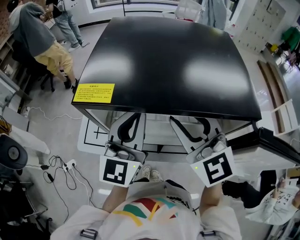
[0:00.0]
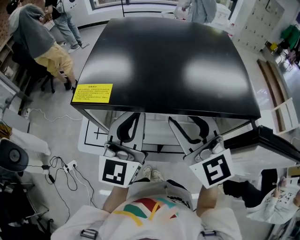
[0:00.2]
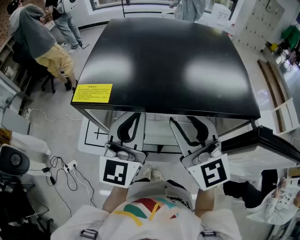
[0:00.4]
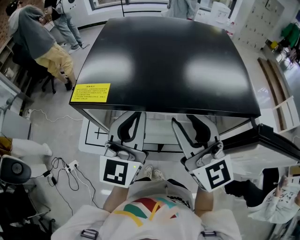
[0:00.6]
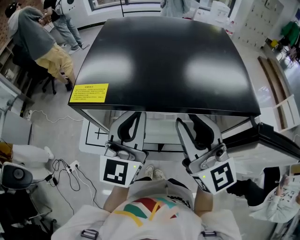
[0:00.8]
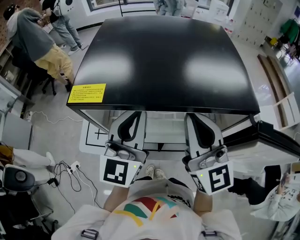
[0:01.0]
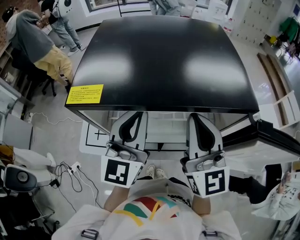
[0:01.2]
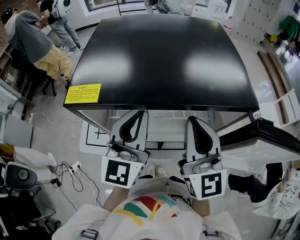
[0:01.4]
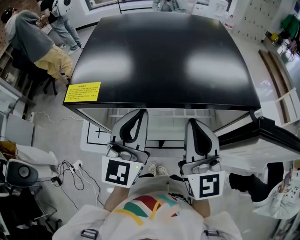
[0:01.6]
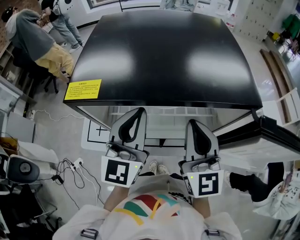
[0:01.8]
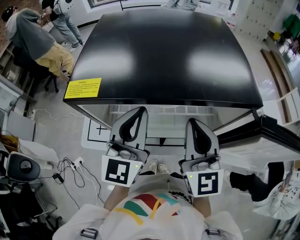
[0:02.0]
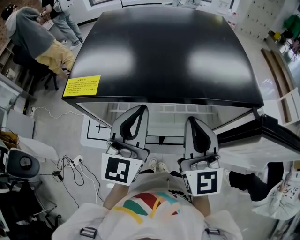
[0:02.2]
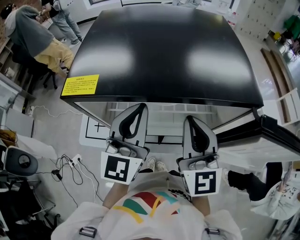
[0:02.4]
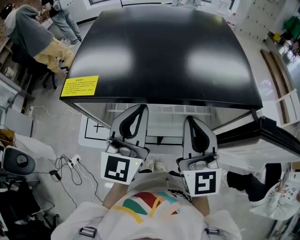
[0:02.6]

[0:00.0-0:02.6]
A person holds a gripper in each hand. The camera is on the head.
0:00.0 to 0:01.2: The right gripper is displaced to the right by roughly 5 cm, rotates some 30 degrees, and closes.
0:01.2 to 0:02.6: The grippers make only small movements.

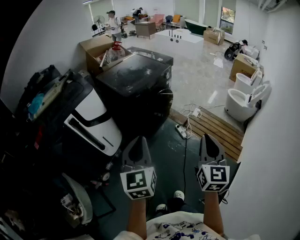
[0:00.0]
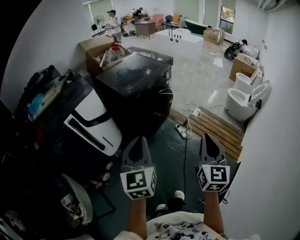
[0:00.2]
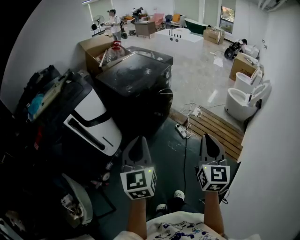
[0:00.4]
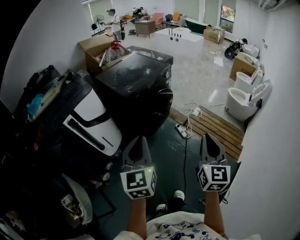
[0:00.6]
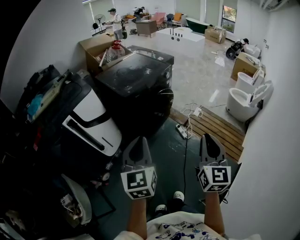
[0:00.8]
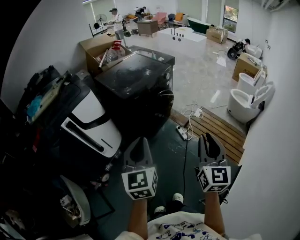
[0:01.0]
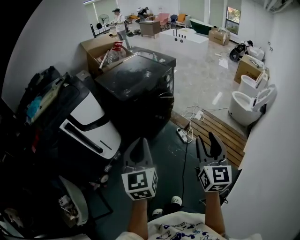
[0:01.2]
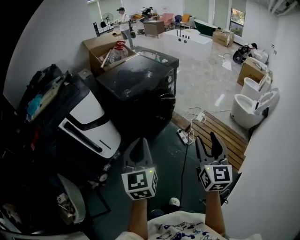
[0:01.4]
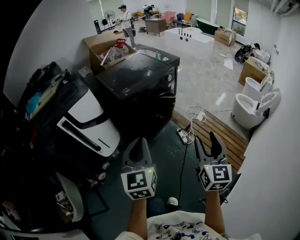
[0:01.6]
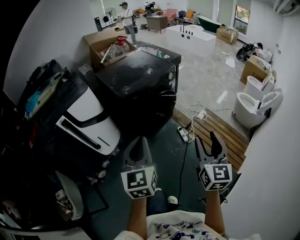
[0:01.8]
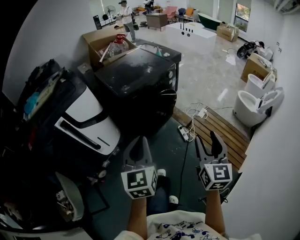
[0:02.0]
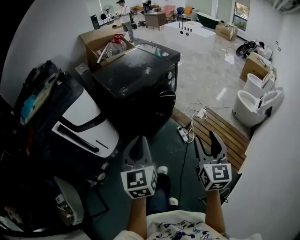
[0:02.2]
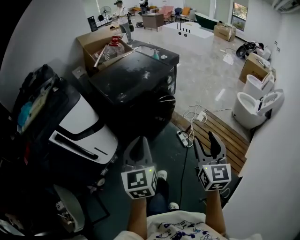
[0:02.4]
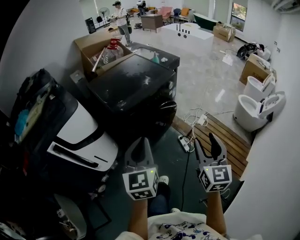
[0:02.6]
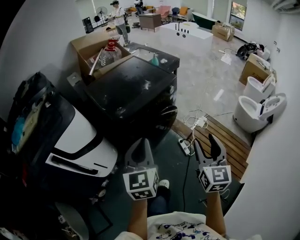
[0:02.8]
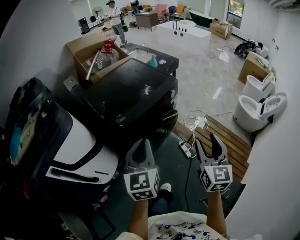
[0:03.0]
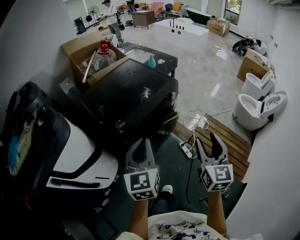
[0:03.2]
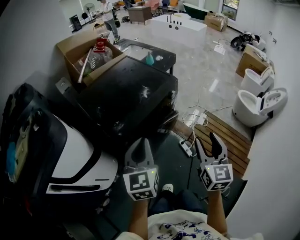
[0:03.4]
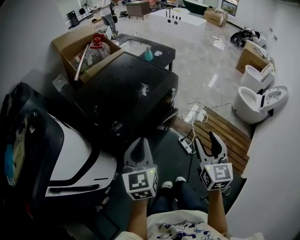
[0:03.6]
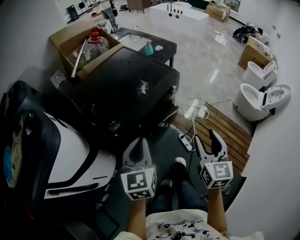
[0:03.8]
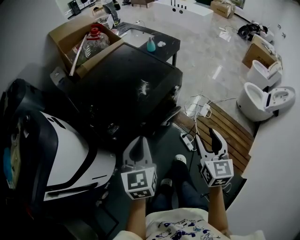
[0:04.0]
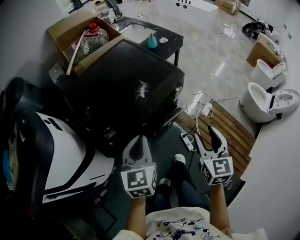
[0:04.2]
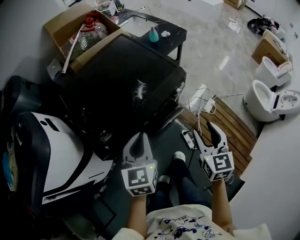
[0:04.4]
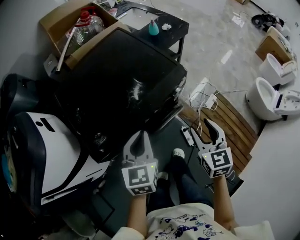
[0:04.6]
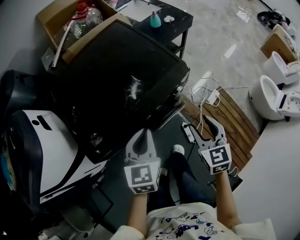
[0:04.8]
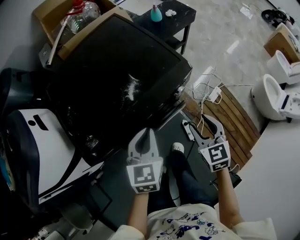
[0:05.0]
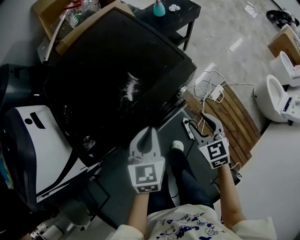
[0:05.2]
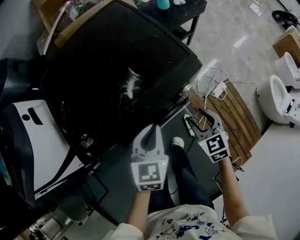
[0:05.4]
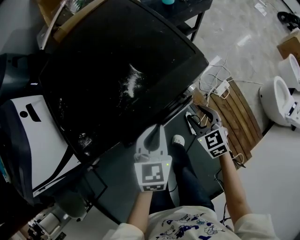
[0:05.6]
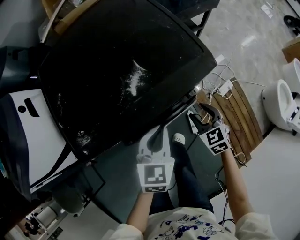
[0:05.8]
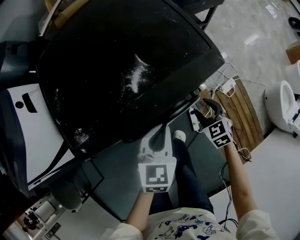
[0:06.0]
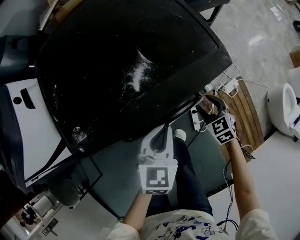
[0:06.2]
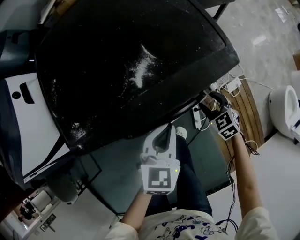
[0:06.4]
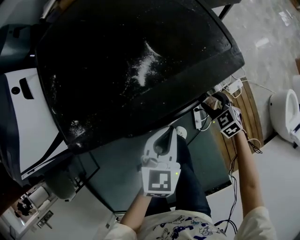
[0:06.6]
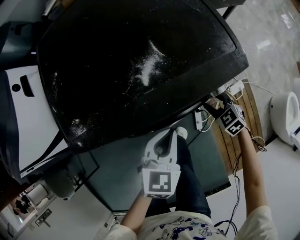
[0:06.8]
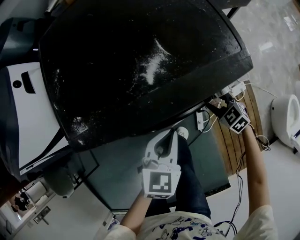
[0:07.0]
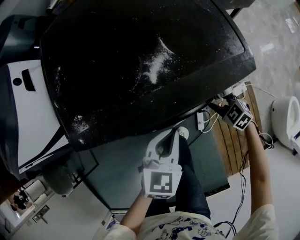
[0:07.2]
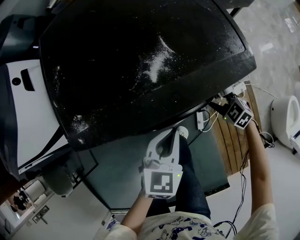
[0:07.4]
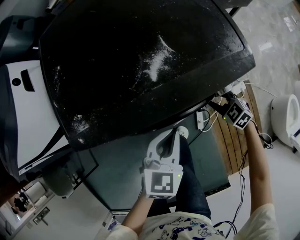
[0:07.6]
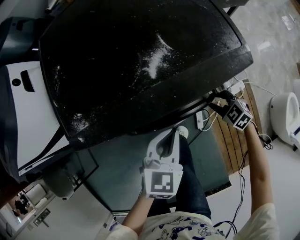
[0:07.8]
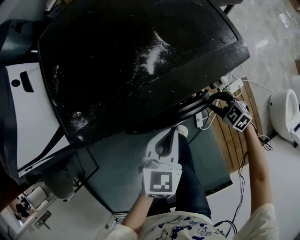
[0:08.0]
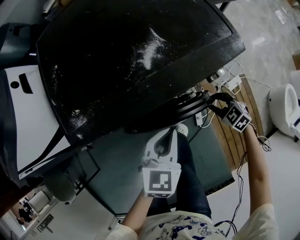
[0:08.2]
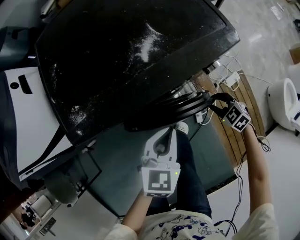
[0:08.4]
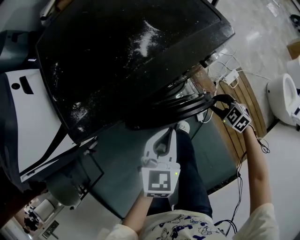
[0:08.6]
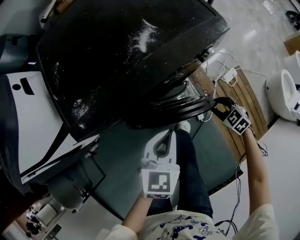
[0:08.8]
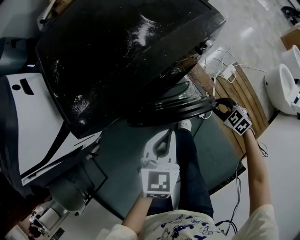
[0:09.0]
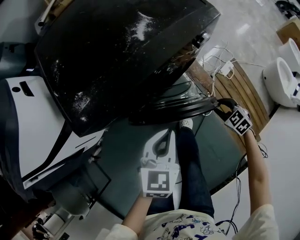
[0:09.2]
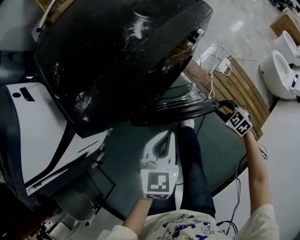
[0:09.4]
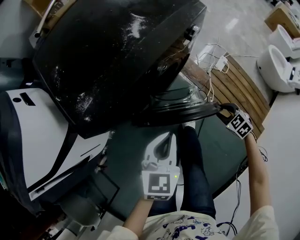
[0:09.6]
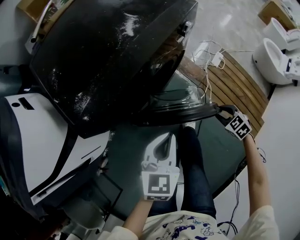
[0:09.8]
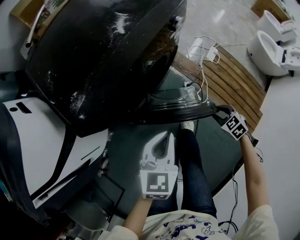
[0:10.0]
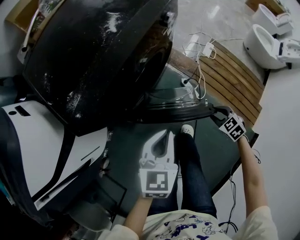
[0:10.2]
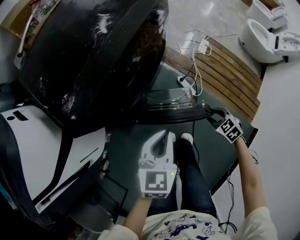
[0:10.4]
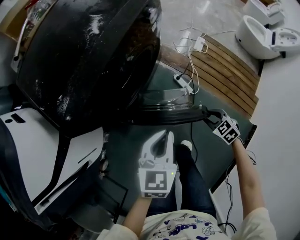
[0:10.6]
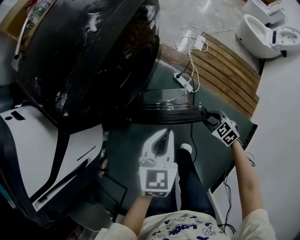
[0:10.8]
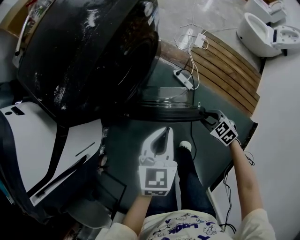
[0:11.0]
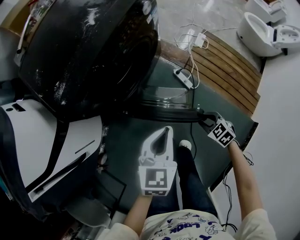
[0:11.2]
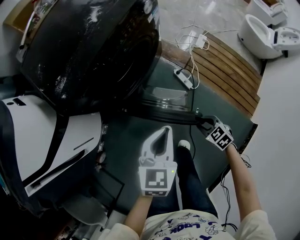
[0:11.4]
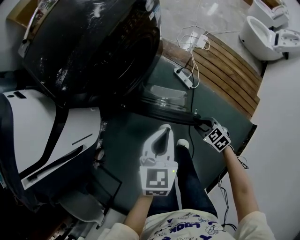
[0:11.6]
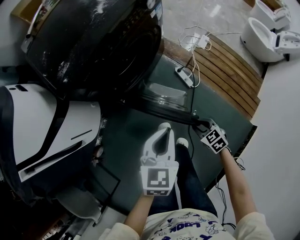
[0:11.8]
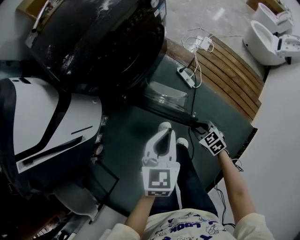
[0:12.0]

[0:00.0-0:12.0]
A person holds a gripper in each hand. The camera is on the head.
0:00.0 to 0:01.6: Both grippers move forward and to the right, approximately 10 cm. The right gripper opens up.
0:01.6 to 0:03.0: The grippers both shift forward by roughly 30 cm.
0:03.0 to 0:04.4: Both grippers travel together forward and downward, approximately 25 cm.
0:04.4 to 0:06.0: The right gripper moves downward and forward, roughly 30 cm, and swivels some 50 degrees. The left gripper goes about 20 cm downward and to the right.
0:06.0 to 0:07.6: The right gripper moves downward, about 5 cm, and rotates approximately 30 degrees.
0:07.6 to 0:09.0: The right gripper is displaced backward by some 15 cm, and turns by about 20 degrees. The left gripper heads backward and to the left, covering some 10 cm.
0:09.0 to 0:10.4: The left gripper travels backward by some 10 cm; the right gripper heads backward, covering some 20 cm, and changes its angle by roughly 30 degrees.
0:10.4 to 0:12.0: The left gripper is displaced backward by roughly 15 cm. The right gripper shifts roughly 15 cm backward and to the left.

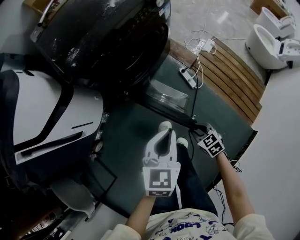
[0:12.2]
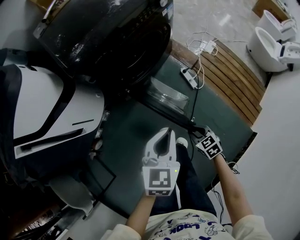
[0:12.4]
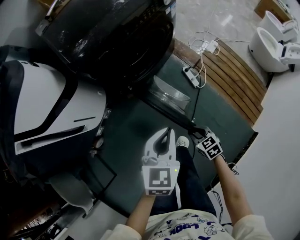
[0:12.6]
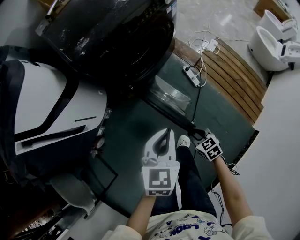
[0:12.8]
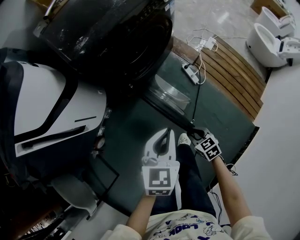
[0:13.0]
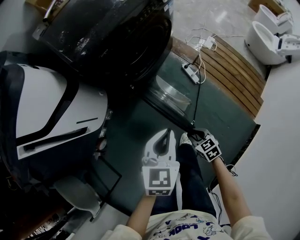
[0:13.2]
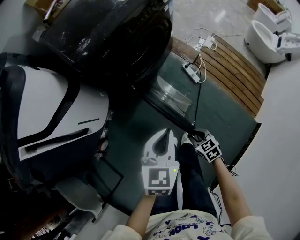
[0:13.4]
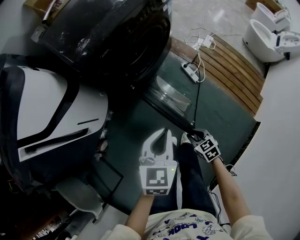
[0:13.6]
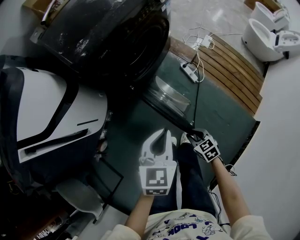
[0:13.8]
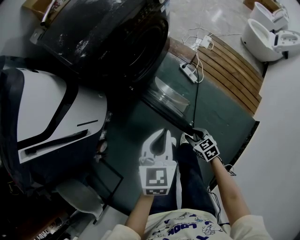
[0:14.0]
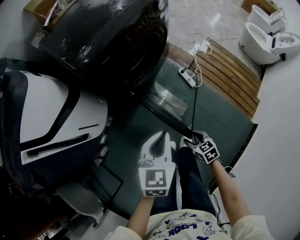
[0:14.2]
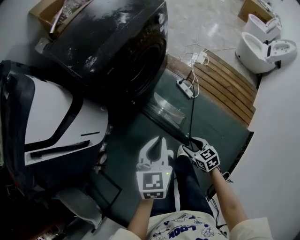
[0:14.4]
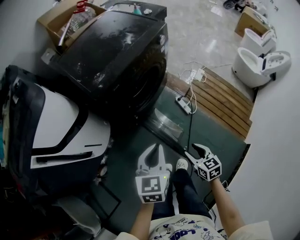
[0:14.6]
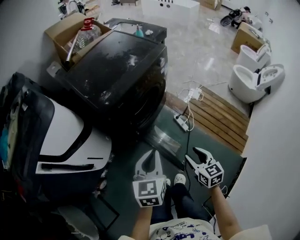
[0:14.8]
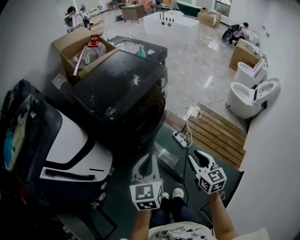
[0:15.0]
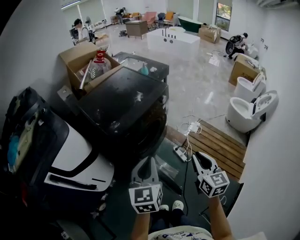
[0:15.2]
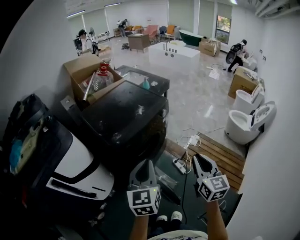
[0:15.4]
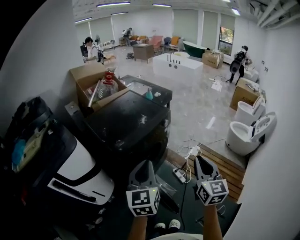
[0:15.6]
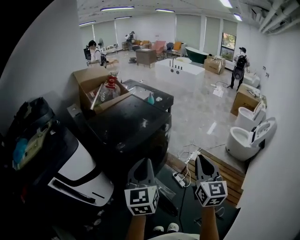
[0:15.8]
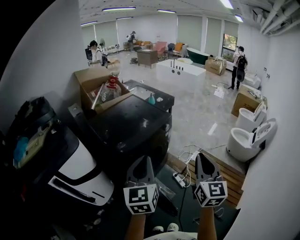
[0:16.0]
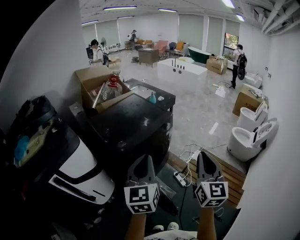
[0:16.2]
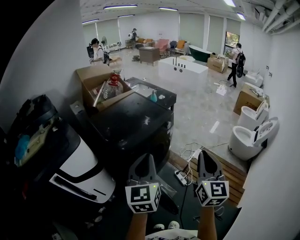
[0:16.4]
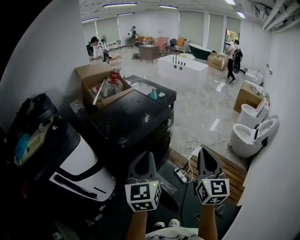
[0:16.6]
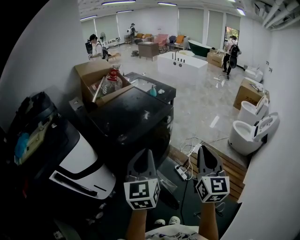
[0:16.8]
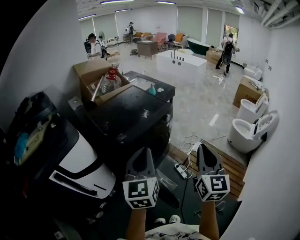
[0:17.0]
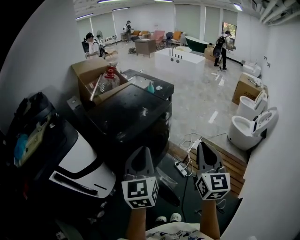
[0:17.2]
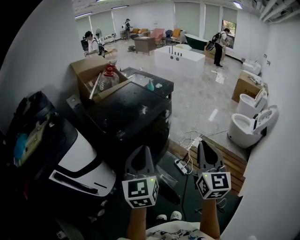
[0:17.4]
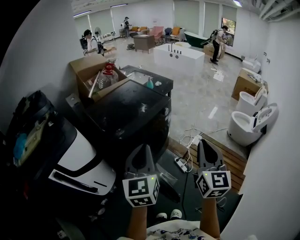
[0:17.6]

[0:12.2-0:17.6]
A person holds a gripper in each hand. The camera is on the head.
0:12.2 to 0:13.6: The right gripper travels to the left and backward by roughly 10 cm, while the left gripper goes some 10 cm to the left.
0:13.6 to 0:15.0: The left gripper is displaced upward by roughly 20 cm, and rotates approximately 20 degrees; the right gripper goes some 35 cm upward, and tips its fingers upward by some 30 degrees.
0:15.0 to 0:16.2: Both grippers travel together upward, about 20 cm. The right gripper rotates about 30 degrees, and closes.
0:16.2 to 0:17.6: Both grippers stay put.

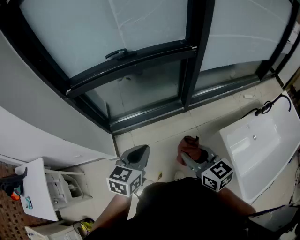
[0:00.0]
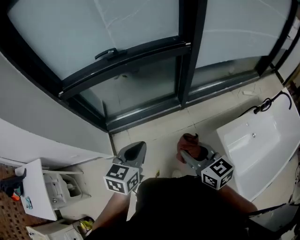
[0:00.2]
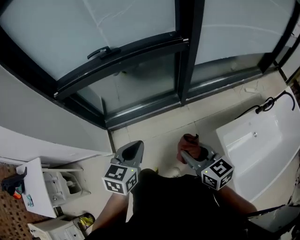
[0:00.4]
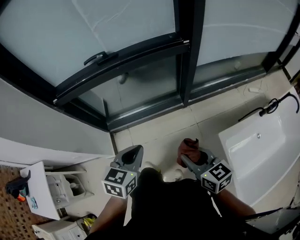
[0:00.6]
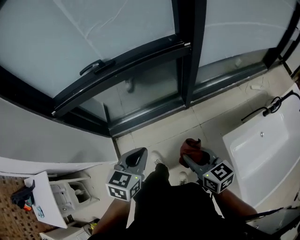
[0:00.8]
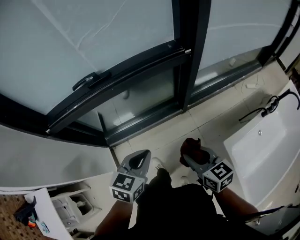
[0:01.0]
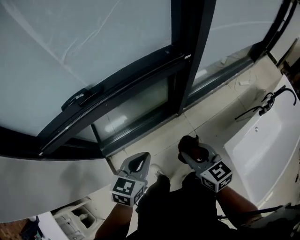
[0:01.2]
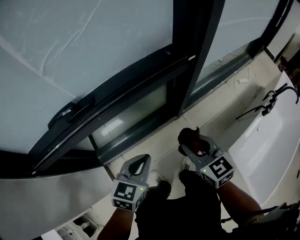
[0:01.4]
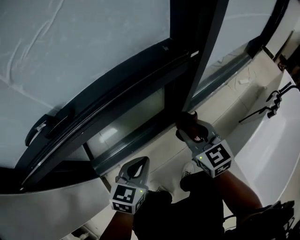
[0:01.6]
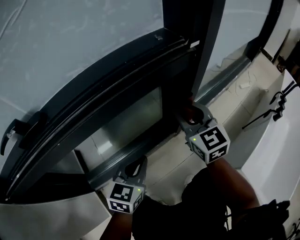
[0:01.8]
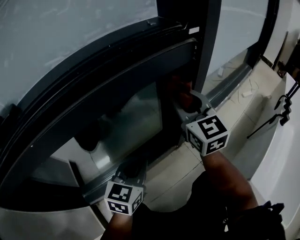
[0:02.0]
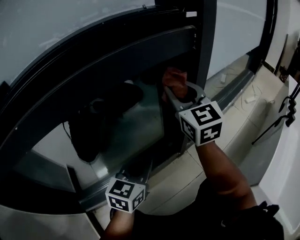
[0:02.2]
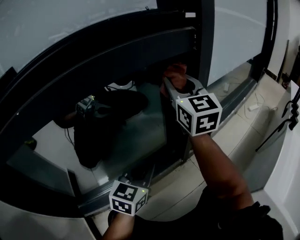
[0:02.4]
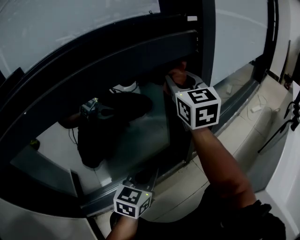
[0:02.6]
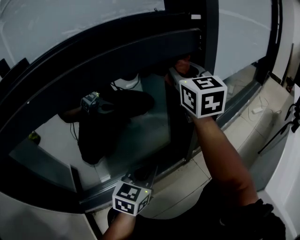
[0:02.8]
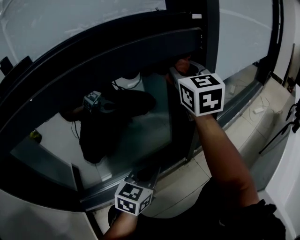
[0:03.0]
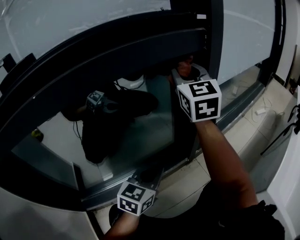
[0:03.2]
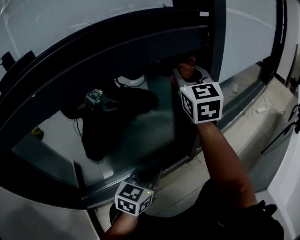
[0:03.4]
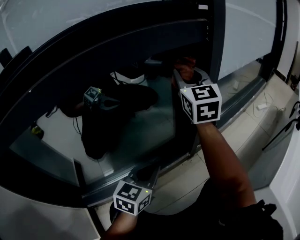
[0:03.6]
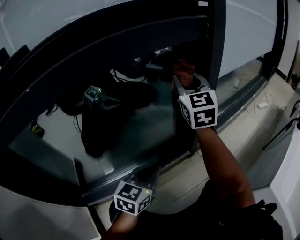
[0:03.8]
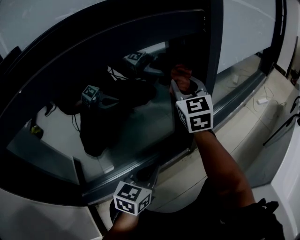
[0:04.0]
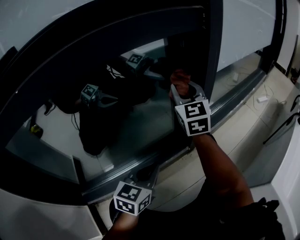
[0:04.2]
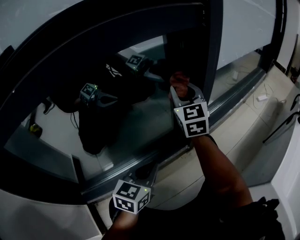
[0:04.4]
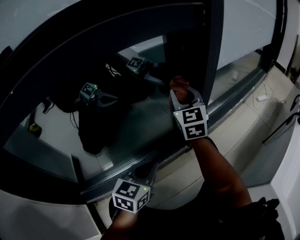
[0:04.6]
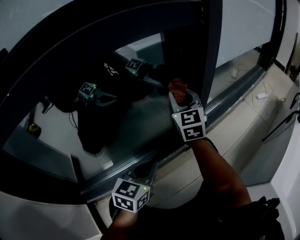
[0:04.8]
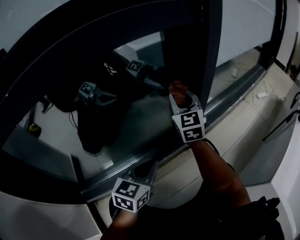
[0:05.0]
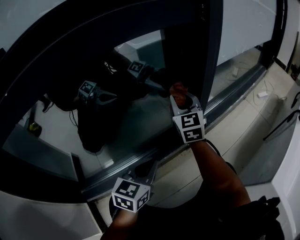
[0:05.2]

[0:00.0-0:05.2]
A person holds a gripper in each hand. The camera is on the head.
0:00.0 to 0:01.8: Both grippers are carried forward, roughly 50 cm. The right gripper swivels roughly 30 degrees, while the left gripper is displaced downward by some 25 cm.
0:01.8 to 0:03.4: The left gripper travels downward by some 15 cm. The right gripper shifts approximately 10 cm forward, and swivels roughly 20 degrees.
0:03.4 to 0:05.2: The right gripper travels downward by approximately 20 cm.
